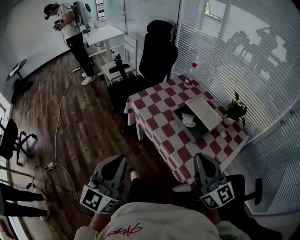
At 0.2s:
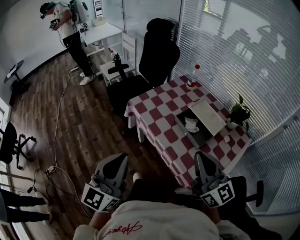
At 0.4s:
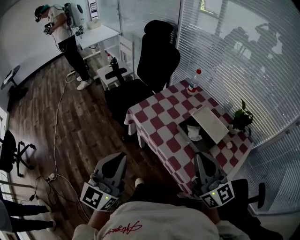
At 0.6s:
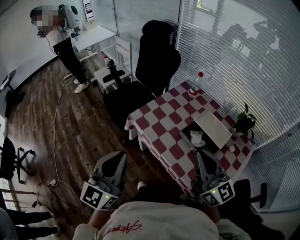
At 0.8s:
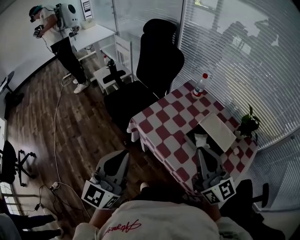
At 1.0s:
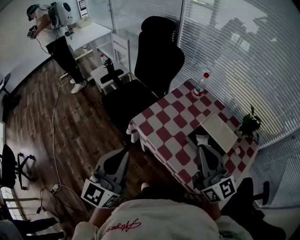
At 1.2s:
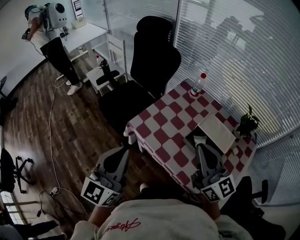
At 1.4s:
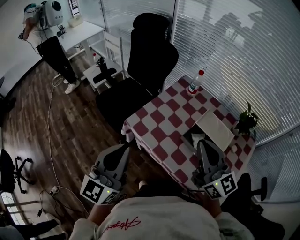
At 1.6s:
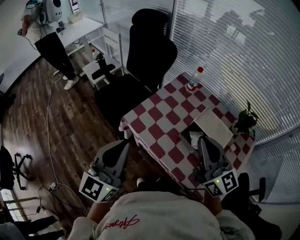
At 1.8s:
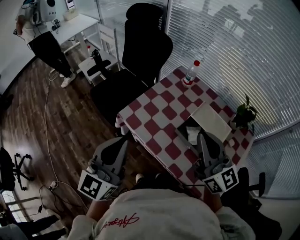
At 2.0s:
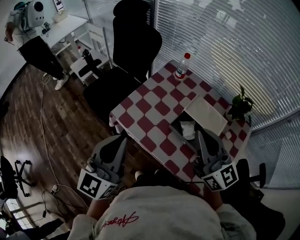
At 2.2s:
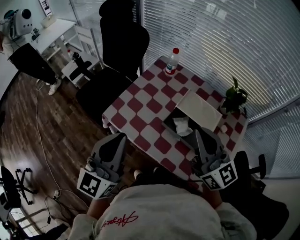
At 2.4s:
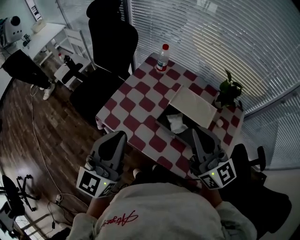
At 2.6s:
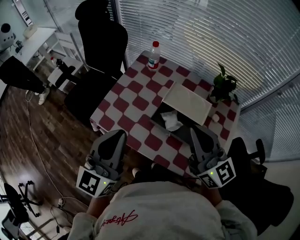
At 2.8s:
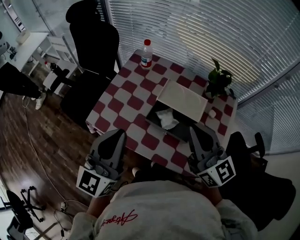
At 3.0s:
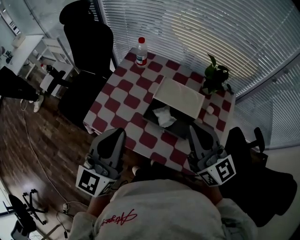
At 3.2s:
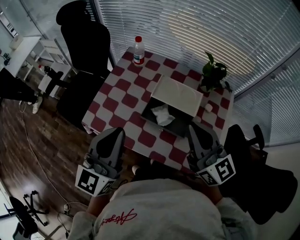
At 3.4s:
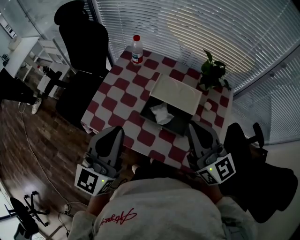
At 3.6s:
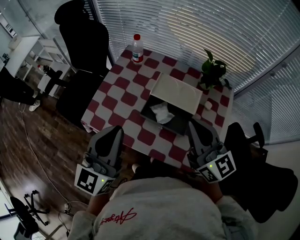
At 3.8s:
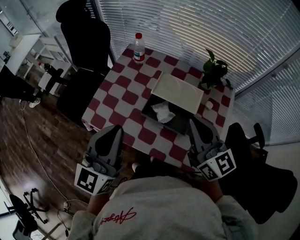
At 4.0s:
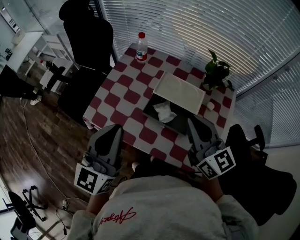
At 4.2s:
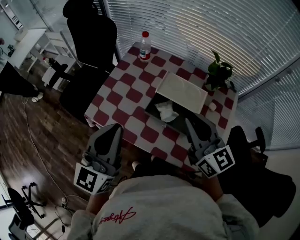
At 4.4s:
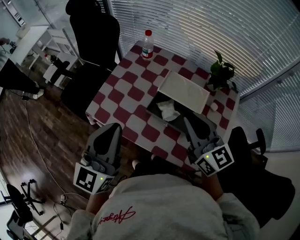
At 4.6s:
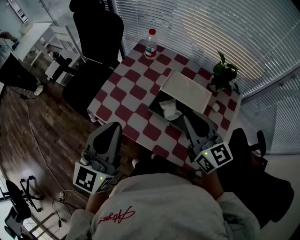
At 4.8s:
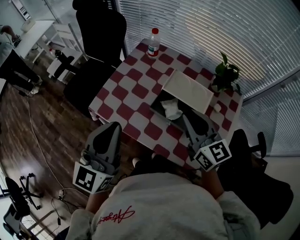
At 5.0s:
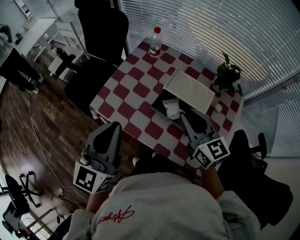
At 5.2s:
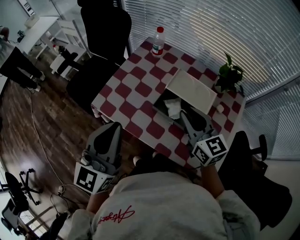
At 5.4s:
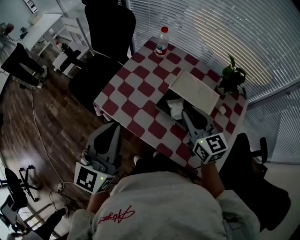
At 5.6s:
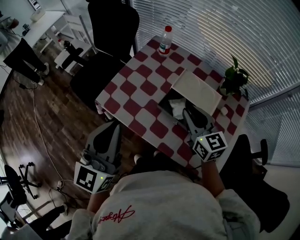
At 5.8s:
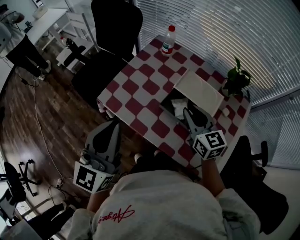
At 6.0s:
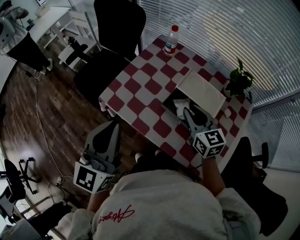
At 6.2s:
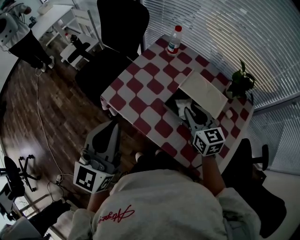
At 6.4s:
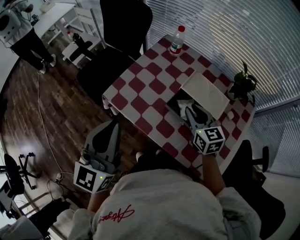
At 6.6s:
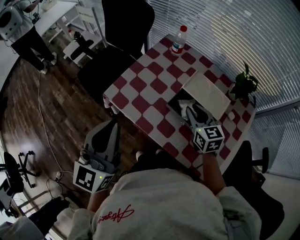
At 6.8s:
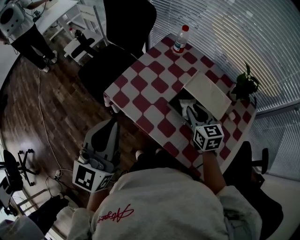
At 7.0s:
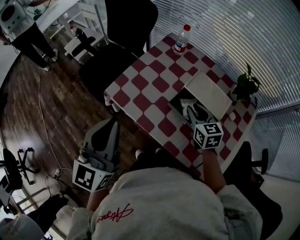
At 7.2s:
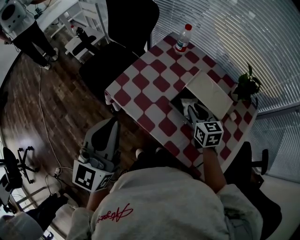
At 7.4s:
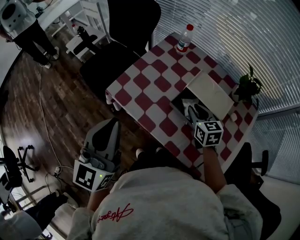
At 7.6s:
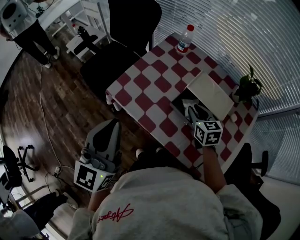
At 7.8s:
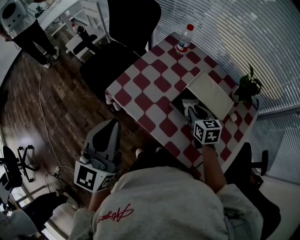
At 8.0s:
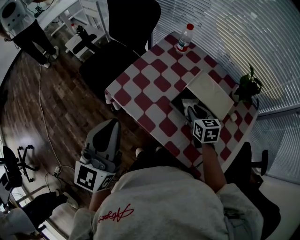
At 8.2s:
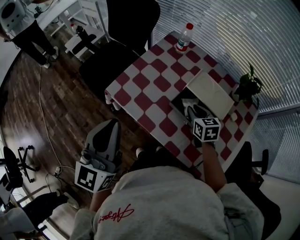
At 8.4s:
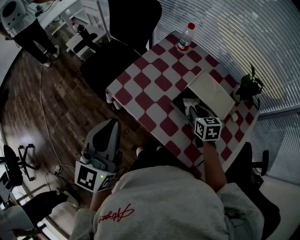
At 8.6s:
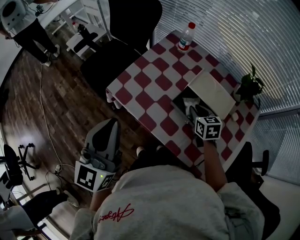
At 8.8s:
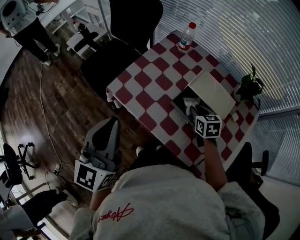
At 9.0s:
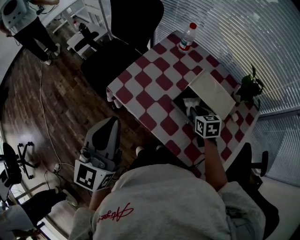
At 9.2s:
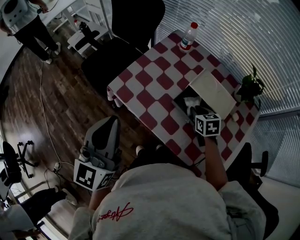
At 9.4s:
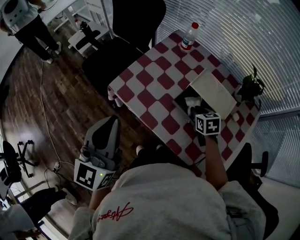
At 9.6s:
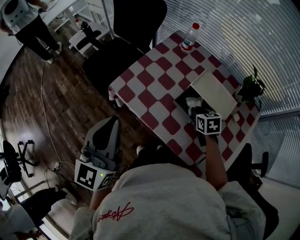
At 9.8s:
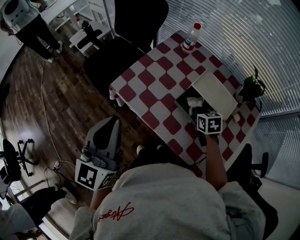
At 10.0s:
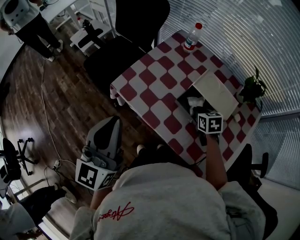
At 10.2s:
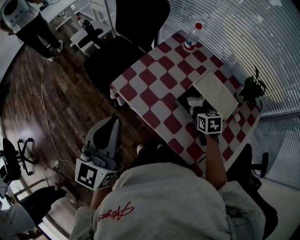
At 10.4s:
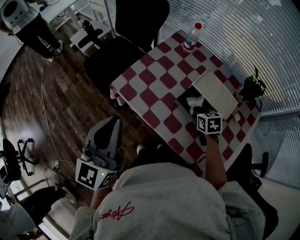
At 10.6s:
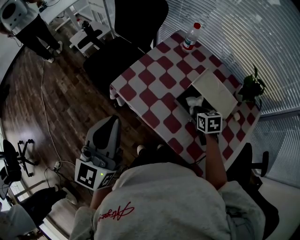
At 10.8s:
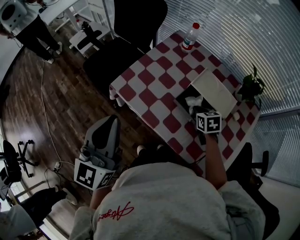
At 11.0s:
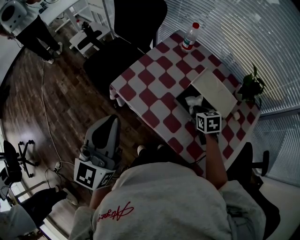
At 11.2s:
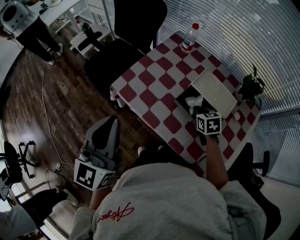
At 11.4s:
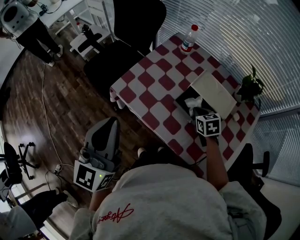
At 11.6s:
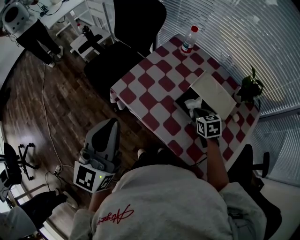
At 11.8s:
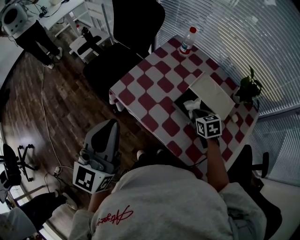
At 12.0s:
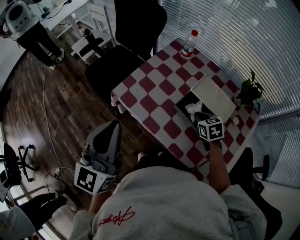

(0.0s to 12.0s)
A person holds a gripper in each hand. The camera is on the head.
0.0s - 1.6s: Both grippers move forward, roughly 25 cm.
1.6s - 3.0s: The left gripper shifts roughly 15 cm to the right and forward. The right gripper travels to the right by approximately 10 cm.
3.0s - 4.4s: The grippers stay close to where they were, moving slightly.
4.4s - 6.0s: The left gripper shifts approximately 5 cm to the left, while the right gripper goes about 10 cm downward and forward.
6.0s - 7.6s: The right gripper heads downward, covering approximately 10 cm.
7.6s - 9.0s: The grippers move only a little.
9.0s - 12.0s: There are only small adjustments of the grippers.

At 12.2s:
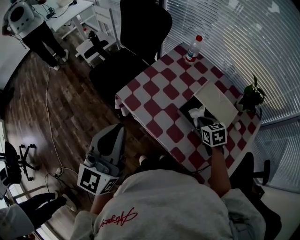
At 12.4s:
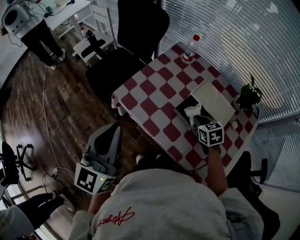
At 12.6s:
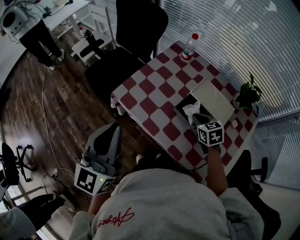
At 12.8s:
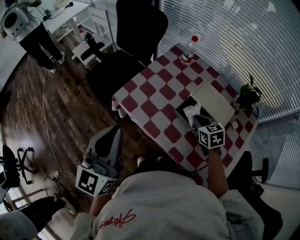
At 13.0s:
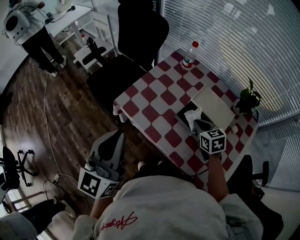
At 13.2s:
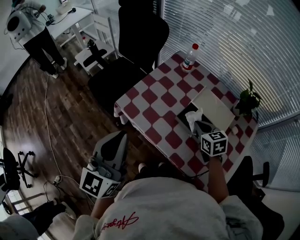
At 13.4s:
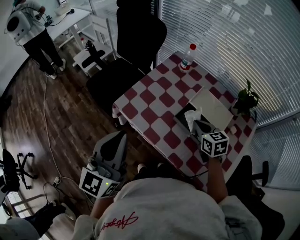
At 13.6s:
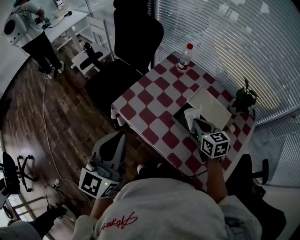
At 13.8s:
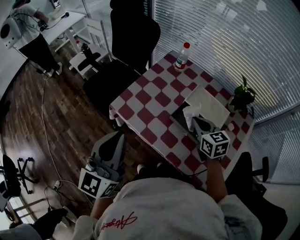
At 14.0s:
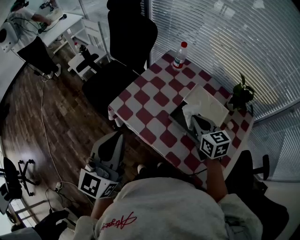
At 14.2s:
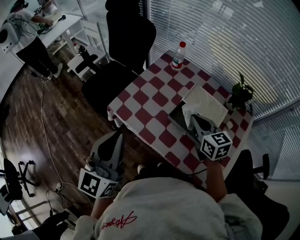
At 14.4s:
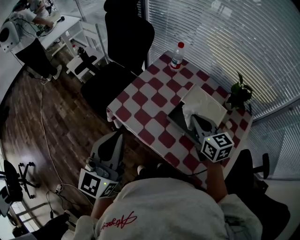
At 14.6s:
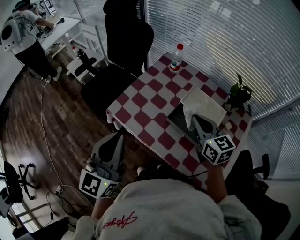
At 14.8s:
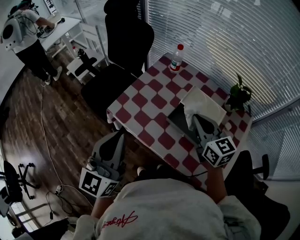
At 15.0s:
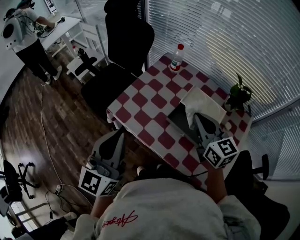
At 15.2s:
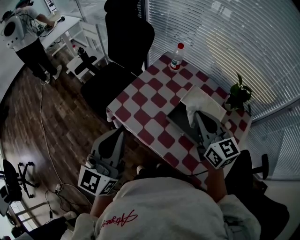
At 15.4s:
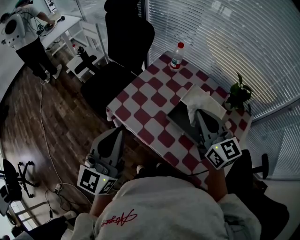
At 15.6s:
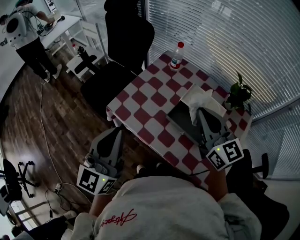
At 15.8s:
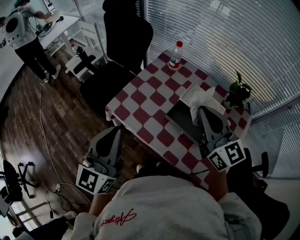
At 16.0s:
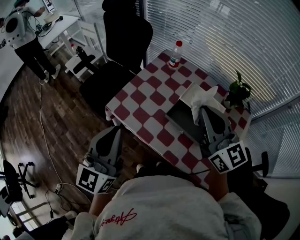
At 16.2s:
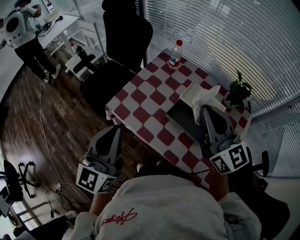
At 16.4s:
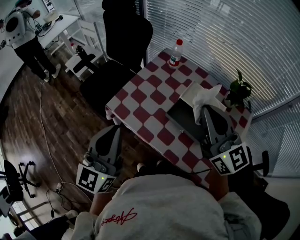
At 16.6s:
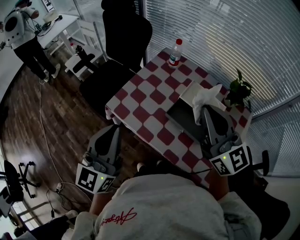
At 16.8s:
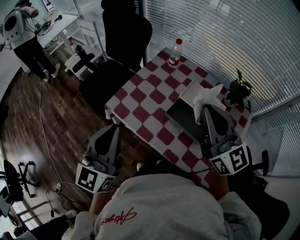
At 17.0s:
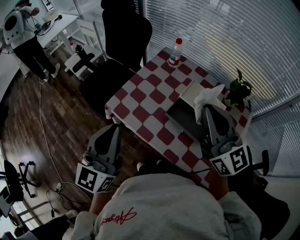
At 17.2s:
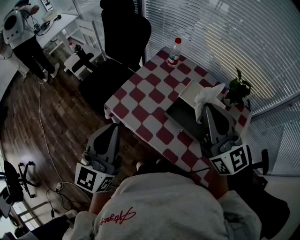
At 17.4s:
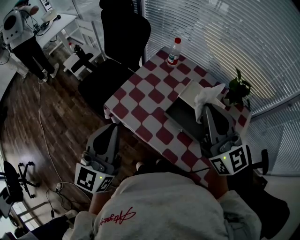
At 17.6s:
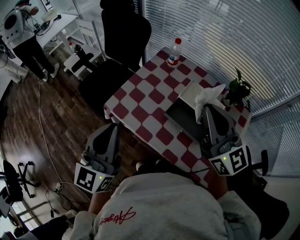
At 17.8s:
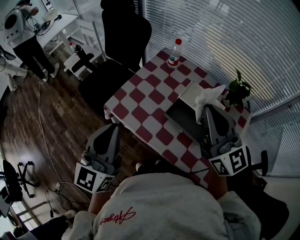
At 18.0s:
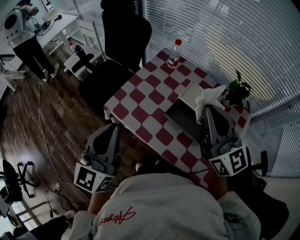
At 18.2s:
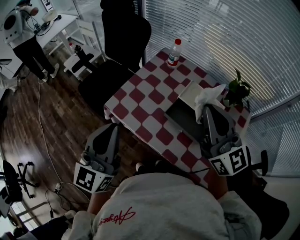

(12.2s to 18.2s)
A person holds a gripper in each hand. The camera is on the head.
12.2s - 13.8s: The right gripper is displaced upward by roughly 10 cm, and swivels approximately 20 degrees.
13.8s - 15.2s: The right gripper moves upward, roughly 10 cm, and rotates about 20 degrees.
15.2s - 16.6s: The right gripper heads upward, covering roughly 10 cm.
16.6s - 18.2s: Neither gripper changes place.

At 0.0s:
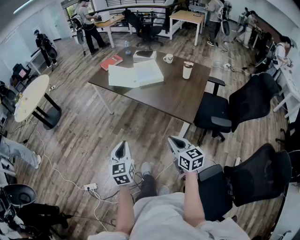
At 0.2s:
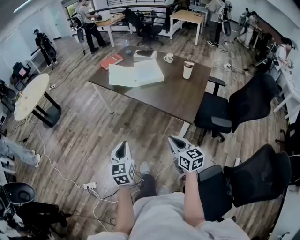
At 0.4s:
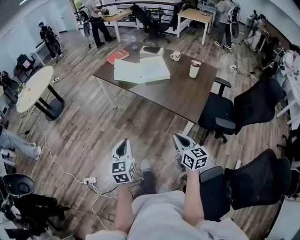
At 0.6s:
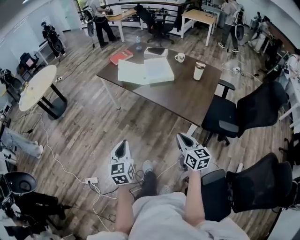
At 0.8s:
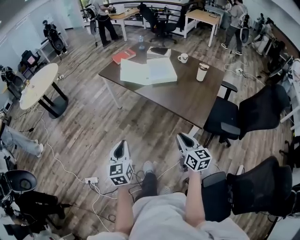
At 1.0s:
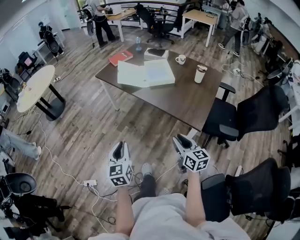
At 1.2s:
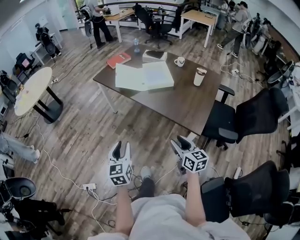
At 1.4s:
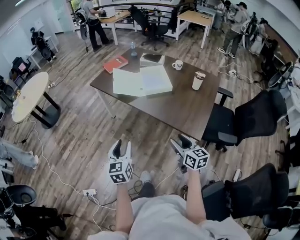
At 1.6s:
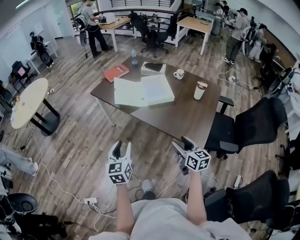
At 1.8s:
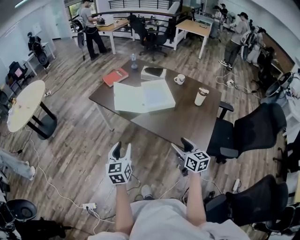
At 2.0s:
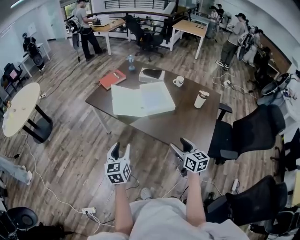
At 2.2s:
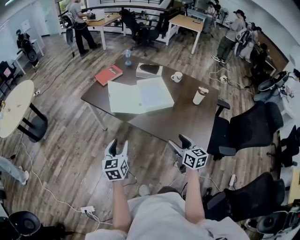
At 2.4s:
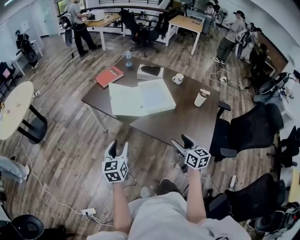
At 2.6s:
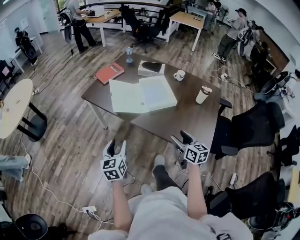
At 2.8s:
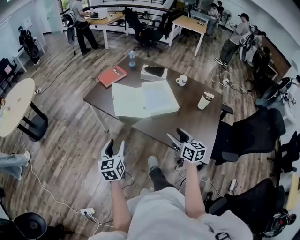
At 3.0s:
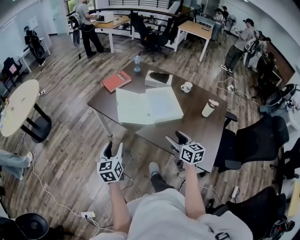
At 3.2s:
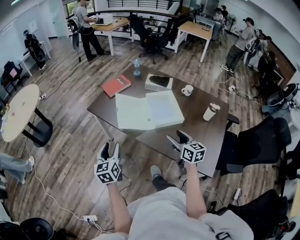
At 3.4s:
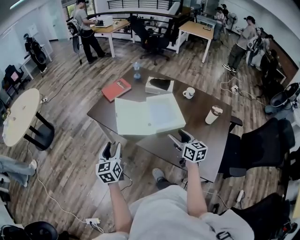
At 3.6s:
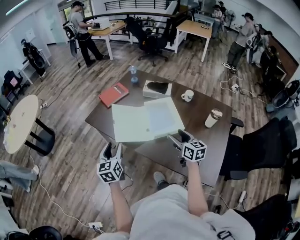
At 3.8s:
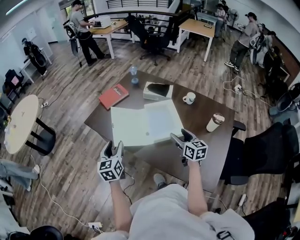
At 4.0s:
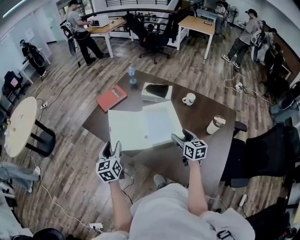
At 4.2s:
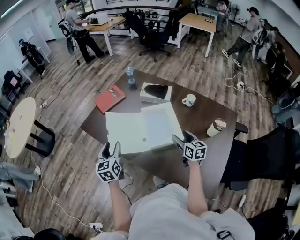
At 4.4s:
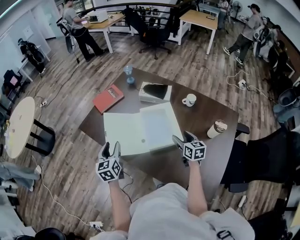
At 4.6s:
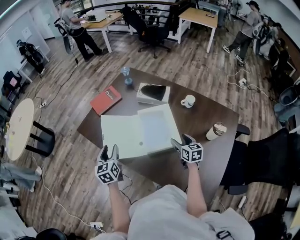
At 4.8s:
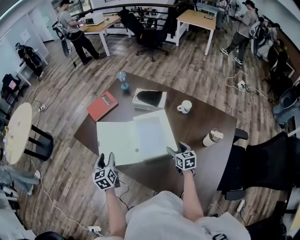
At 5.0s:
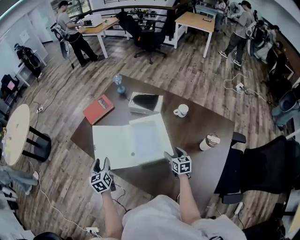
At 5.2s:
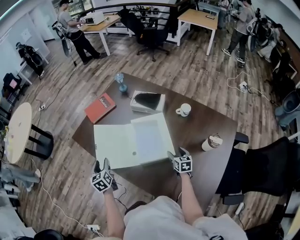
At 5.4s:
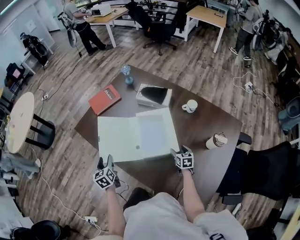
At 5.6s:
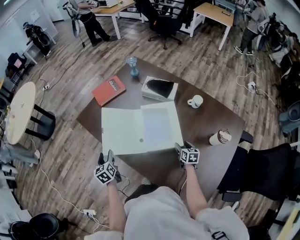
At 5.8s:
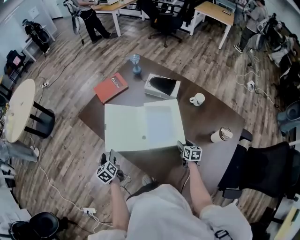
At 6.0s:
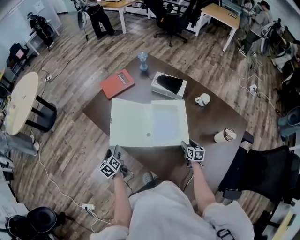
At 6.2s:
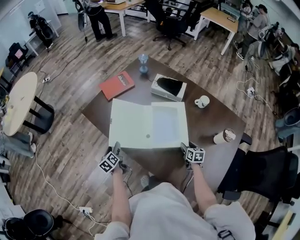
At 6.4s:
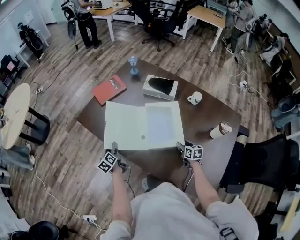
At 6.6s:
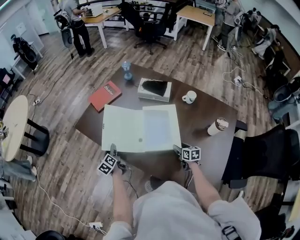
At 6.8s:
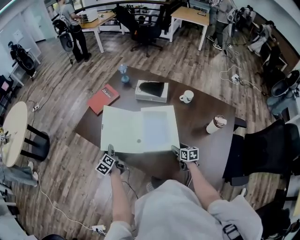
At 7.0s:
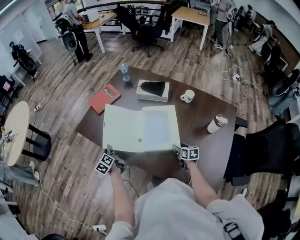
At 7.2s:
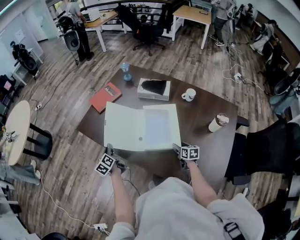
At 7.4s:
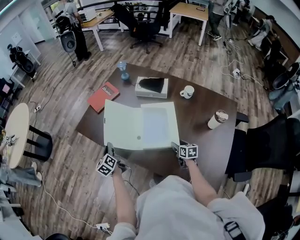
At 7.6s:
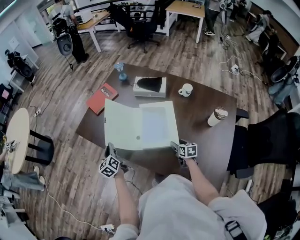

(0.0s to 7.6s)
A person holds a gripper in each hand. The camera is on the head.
0.0s - 1.6s: Both grippers travel together forward, approximately 20 cm. The left gripper opens its fingers. Meanwhile the right gripper opens.
1.6s - 3.0s: The right gripper heads forward, covering some 25 cm, while the left gripper travels forward and to the left by approximately 25 cm.
3.0s - 4.6s: The left gripper heads forward and to the right, covering roughly 30 cm, while the right gripper shifts roughly 35 cm forward, to the right and downward.
4.6s - 6.0s: The right gripper is displaced downward by about 15 cm, while the left gripper moves downward and to the left, some 20 cm, and rotates some 30 degrees.
6.0s - 7.6s: The left gripper goes approximately 10 cm forward and upward, and closes. The right gripper is displaced to the left by roughly 5 cm.
